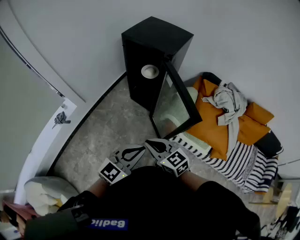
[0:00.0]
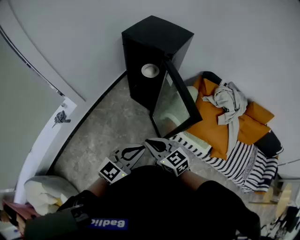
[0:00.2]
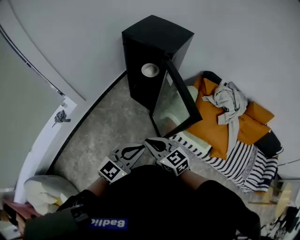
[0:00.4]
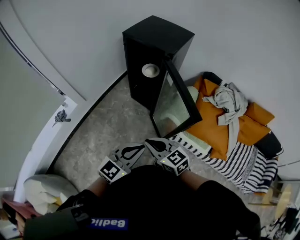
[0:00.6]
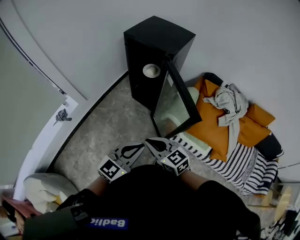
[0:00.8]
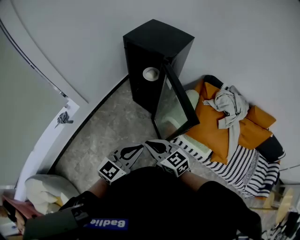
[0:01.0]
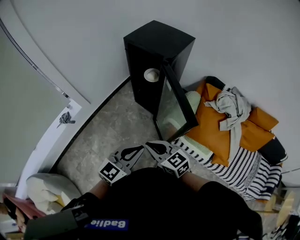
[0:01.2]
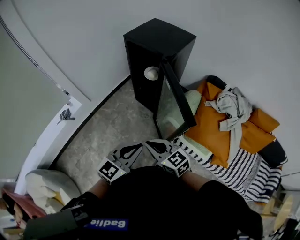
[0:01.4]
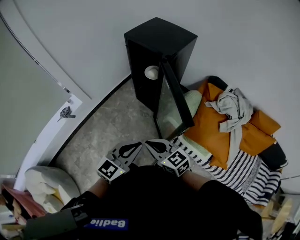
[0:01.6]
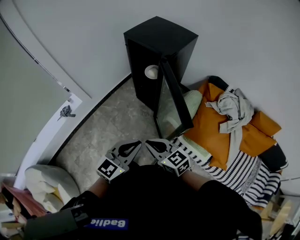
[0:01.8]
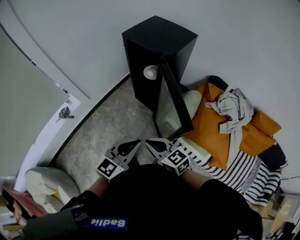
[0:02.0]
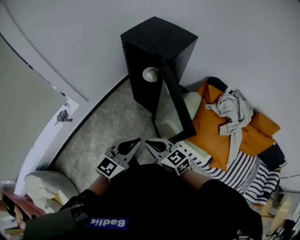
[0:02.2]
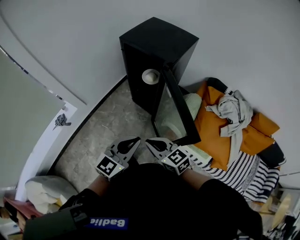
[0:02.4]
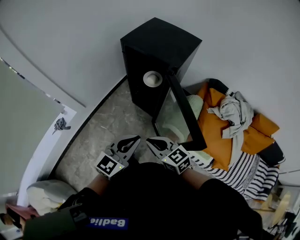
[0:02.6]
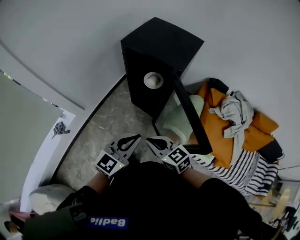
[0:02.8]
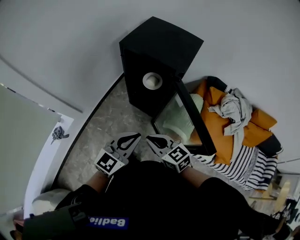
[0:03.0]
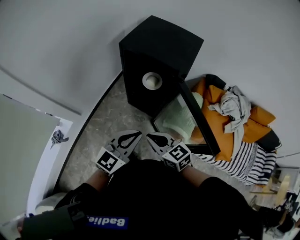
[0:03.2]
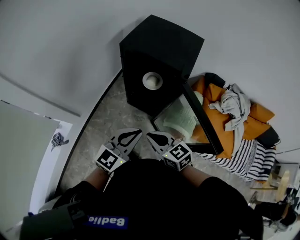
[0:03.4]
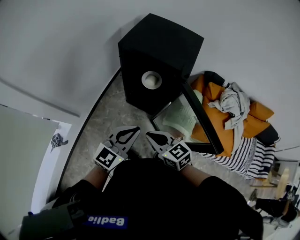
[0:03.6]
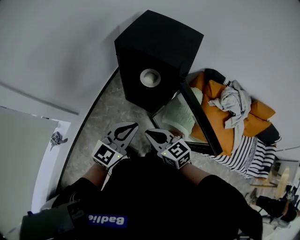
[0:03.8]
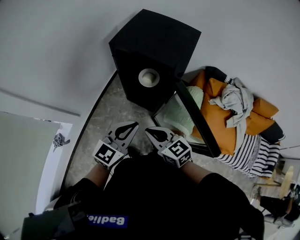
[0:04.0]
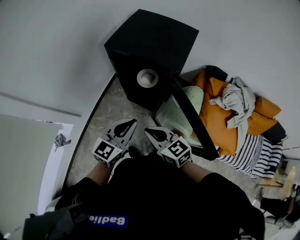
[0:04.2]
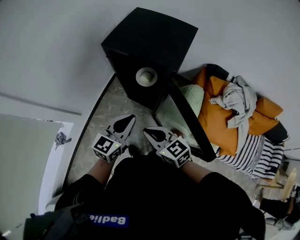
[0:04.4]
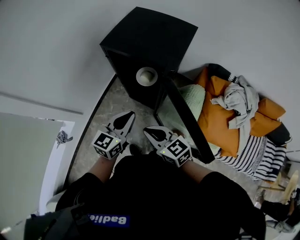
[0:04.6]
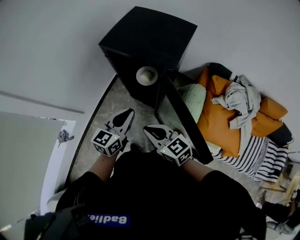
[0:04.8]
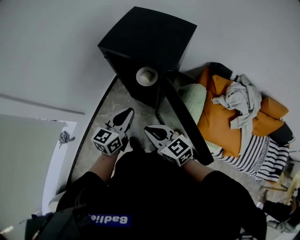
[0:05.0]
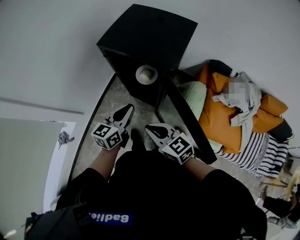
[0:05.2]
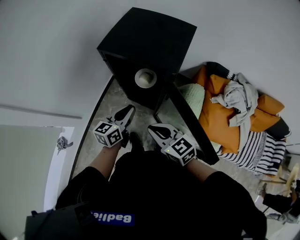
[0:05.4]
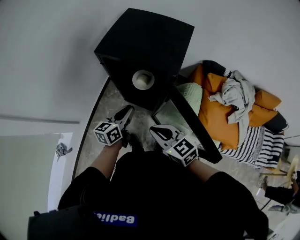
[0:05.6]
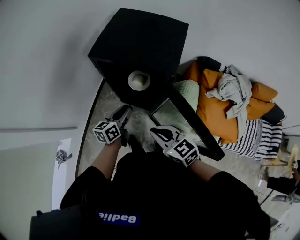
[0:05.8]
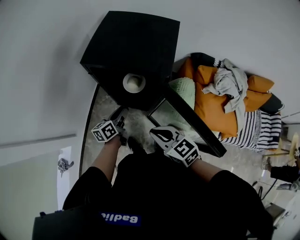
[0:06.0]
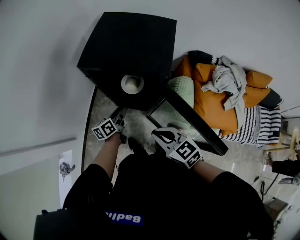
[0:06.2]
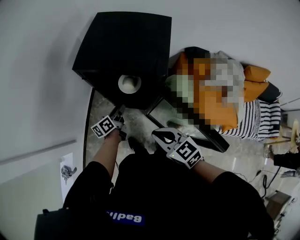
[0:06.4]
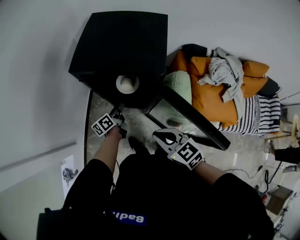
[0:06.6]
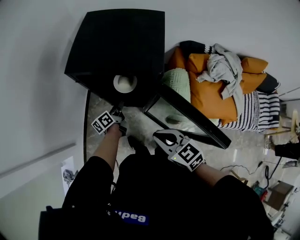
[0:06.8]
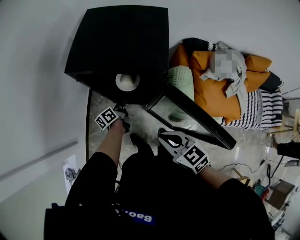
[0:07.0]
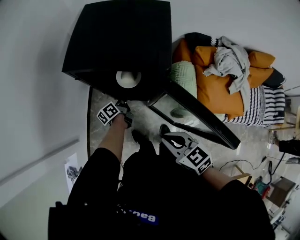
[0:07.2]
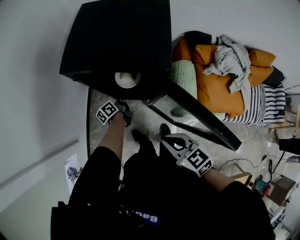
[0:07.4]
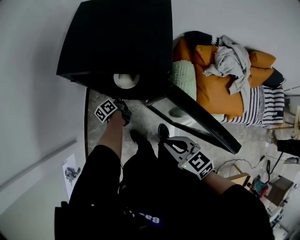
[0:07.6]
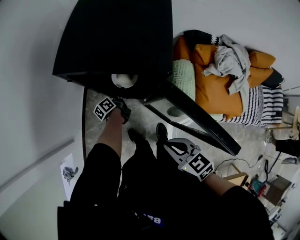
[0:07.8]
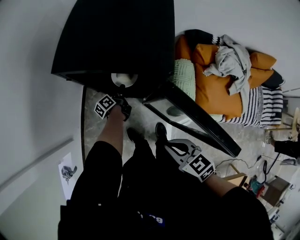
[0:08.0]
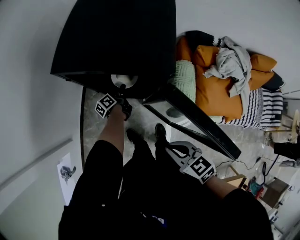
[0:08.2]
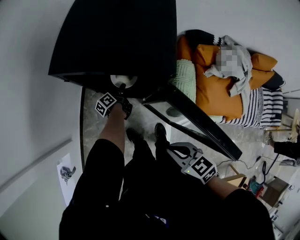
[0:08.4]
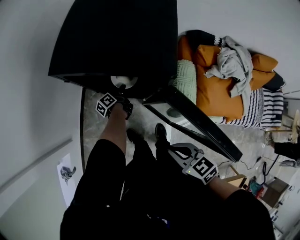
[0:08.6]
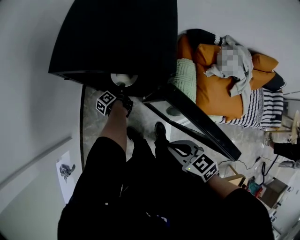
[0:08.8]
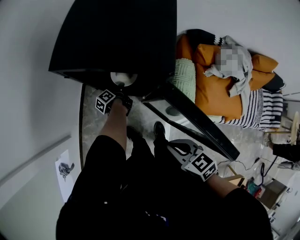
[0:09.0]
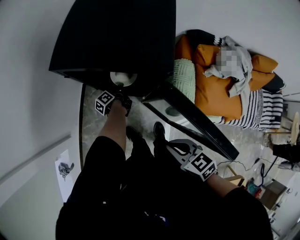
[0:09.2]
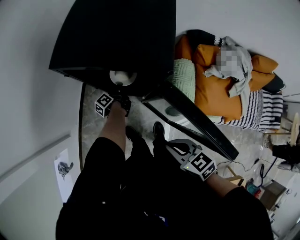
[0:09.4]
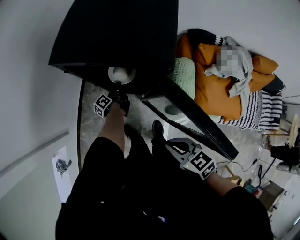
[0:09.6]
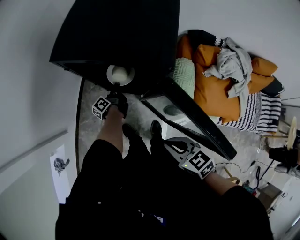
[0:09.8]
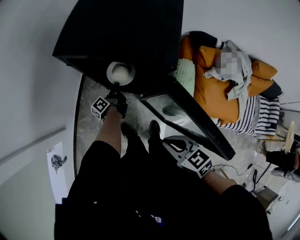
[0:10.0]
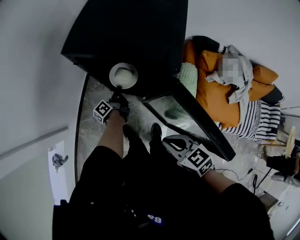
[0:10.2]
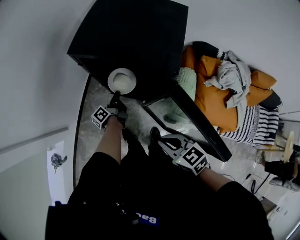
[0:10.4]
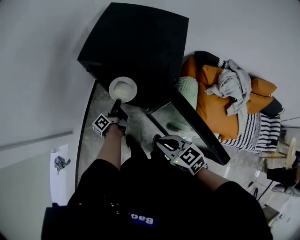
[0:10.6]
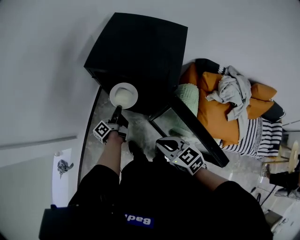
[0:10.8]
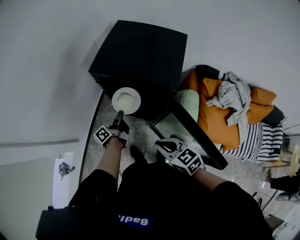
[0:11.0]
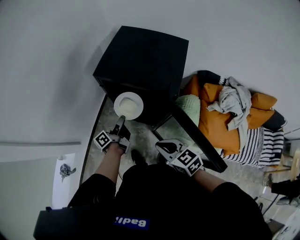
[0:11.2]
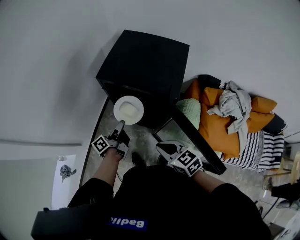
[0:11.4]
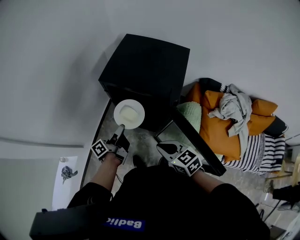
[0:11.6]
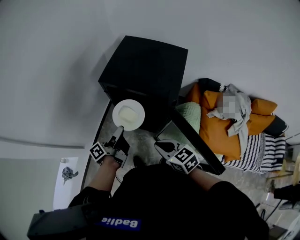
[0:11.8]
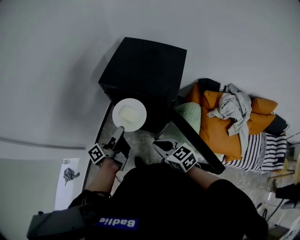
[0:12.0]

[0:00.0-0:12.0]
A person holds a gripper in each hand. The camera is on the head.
0:00.0 to 0:01.6: The right gripper moves to the right, some 5 cm.
0:01.6 to 0:03.0: Both grippers travel together forward and to the left, approximately 20 cm.
0:03.0 to 0:04.4: The right gripper heads forward, covering roughly 5 cm. Meanwhile the left gripper travels forward by some 10 cm.
0:04.4 to 0:06.0: The right gripper shifts some 5 cm forward, while the left gripper is displaced downward and forward by some 20 cm, turns by about 40 degrees, and opens up.
0:06.0 to 0:07.6: The left gripper moves downward and forward, about 20 cm, and changes its angle by some 20 degrees, while the right gripper ends up approximately 5 cm from where it was.
0:07.6 to 0:09.0: The left gripper ends up about 5 cm from where it was, and changes its angle by approximately 20 degrees.
0:09.0 to 0:10.4: The left gripper heads upward and to the left, covering roughly 10 cm, and changes its angle by approximately 20 degrees.
0:10.4 to 0:12.0: The left gripper goes approximately 25 cm upward, while the right gripper shifts some 5 cm forward.

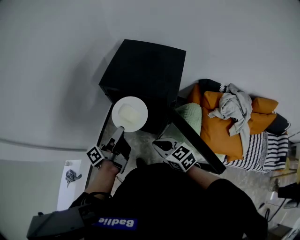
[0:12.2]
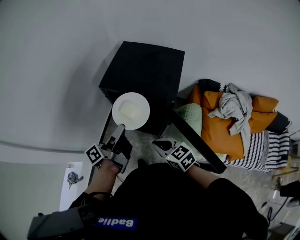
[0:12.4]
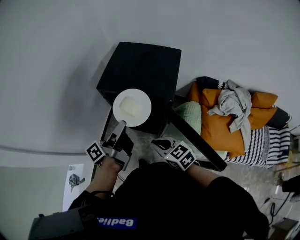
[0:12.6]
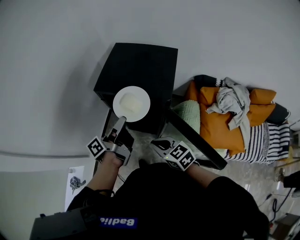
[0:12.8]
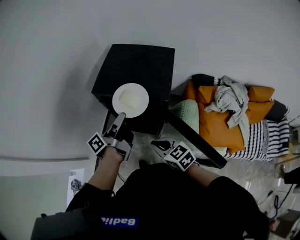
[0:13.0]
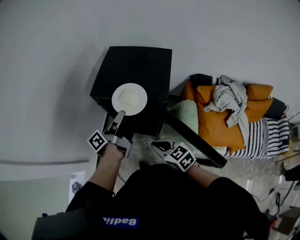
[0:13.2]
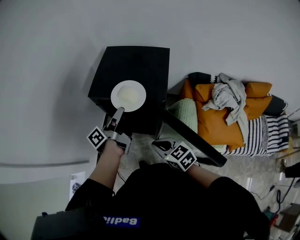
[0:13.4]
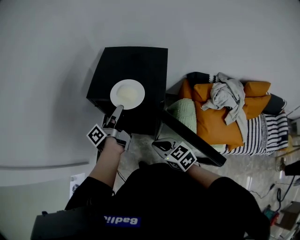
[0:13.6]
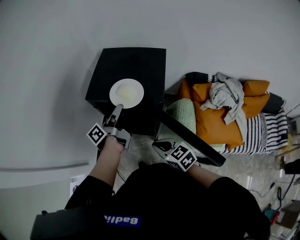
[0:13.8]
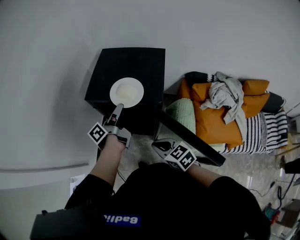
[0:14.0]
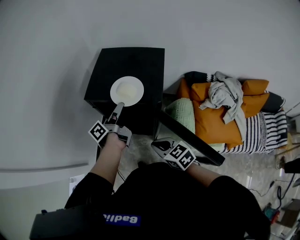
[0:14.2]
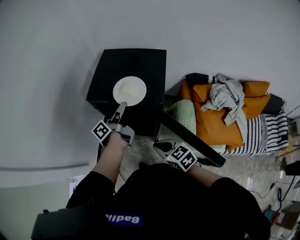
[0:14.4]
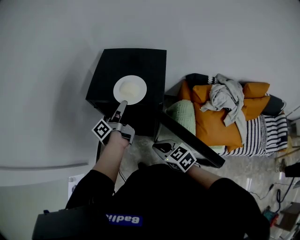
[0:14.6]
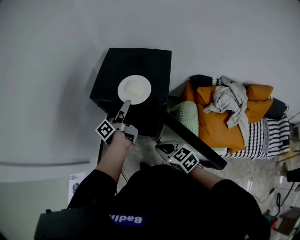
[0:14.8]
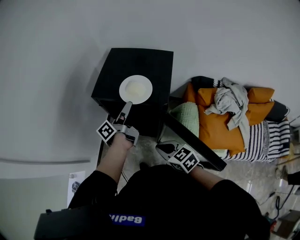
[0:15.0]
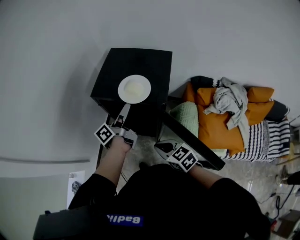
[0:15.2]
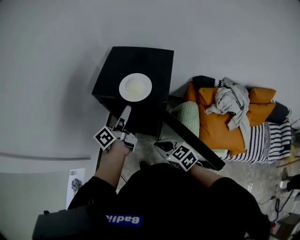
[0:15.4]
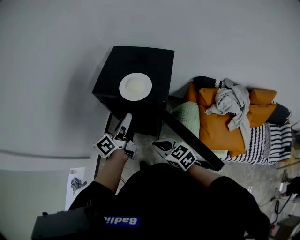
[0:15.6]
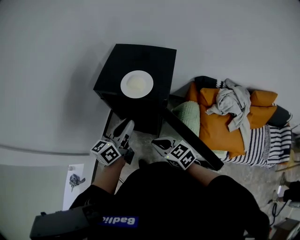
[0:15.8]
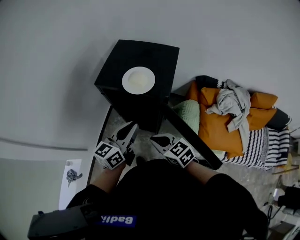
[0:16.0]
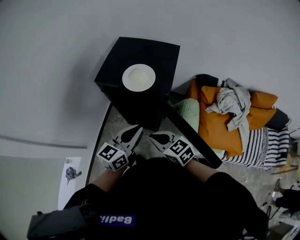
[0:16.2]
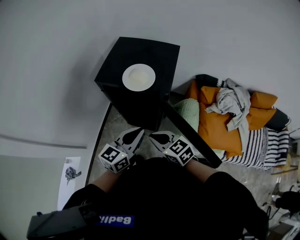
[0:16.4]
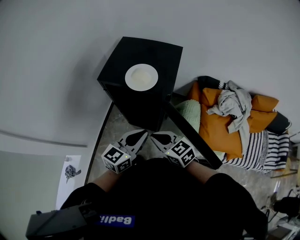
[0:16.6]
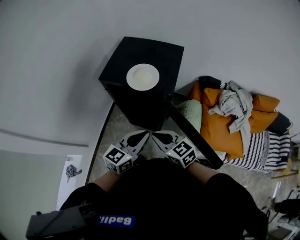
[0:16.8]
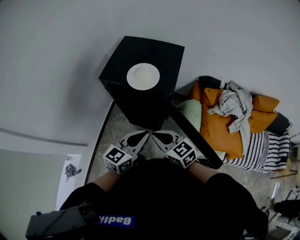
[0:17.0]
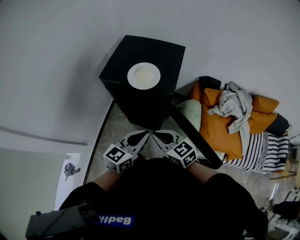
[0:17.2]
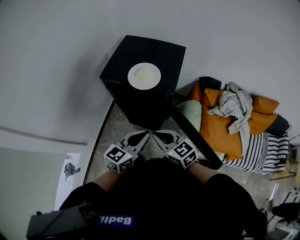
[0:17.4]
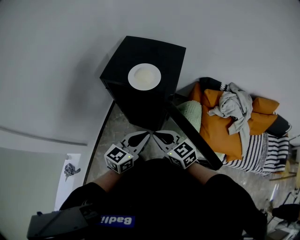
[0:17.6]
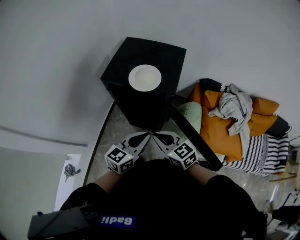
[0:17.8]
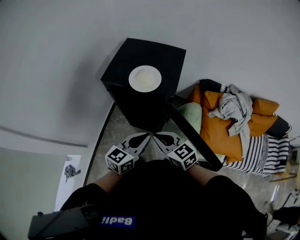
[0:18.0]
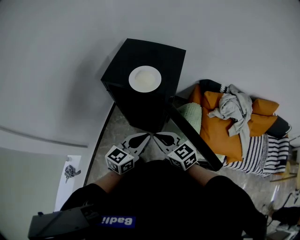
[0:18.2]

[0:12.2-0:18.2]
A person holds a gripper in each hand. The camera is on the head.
0:12.2 to 0:13.8: The left gripper travels forward and to the right by about 15 cm.
0:13.8 to 0:15.2: The grippers move only a little.
0:15.2 to 0:16.6: The left gripper goes some 20 cm backward, and rotates around the line of its fingers by about 60 degrees, clockwise from behind.
0:16.6 to 0:18.2: The grippers make only small movements.

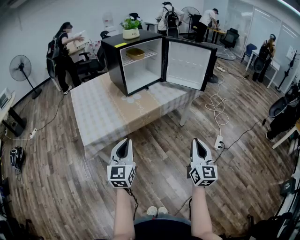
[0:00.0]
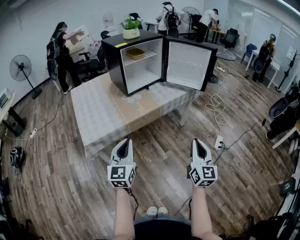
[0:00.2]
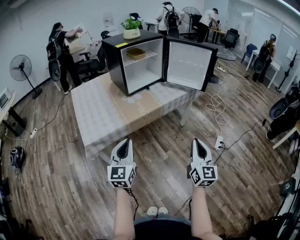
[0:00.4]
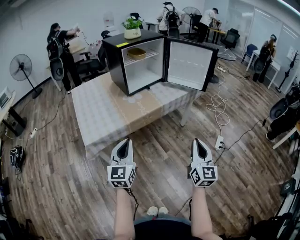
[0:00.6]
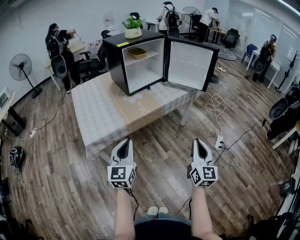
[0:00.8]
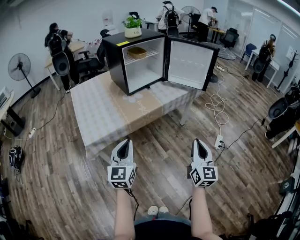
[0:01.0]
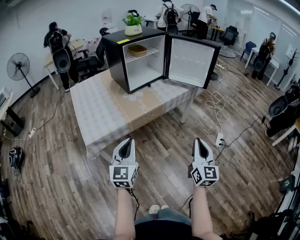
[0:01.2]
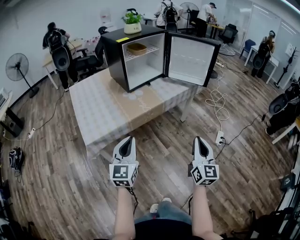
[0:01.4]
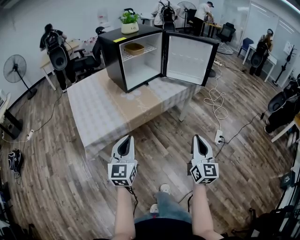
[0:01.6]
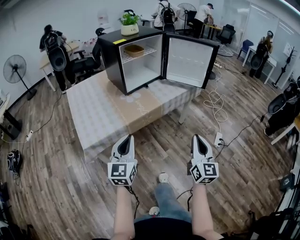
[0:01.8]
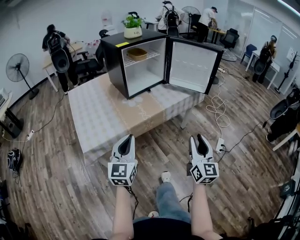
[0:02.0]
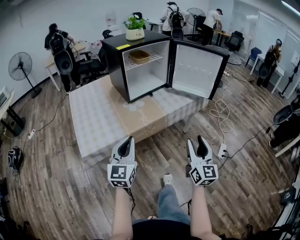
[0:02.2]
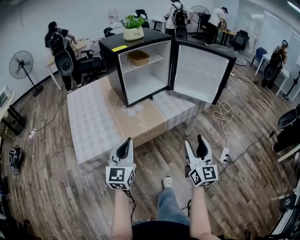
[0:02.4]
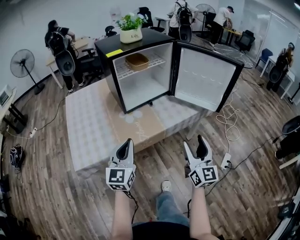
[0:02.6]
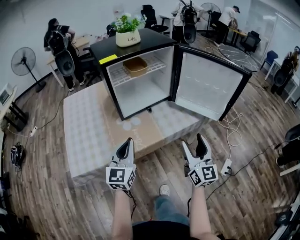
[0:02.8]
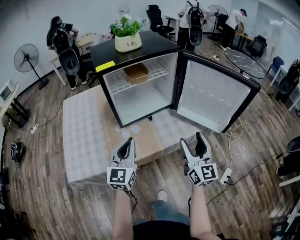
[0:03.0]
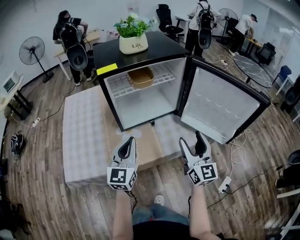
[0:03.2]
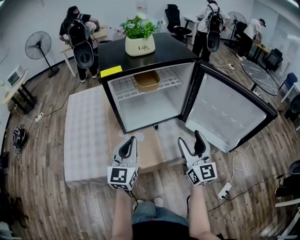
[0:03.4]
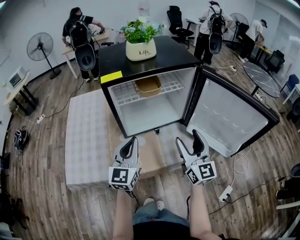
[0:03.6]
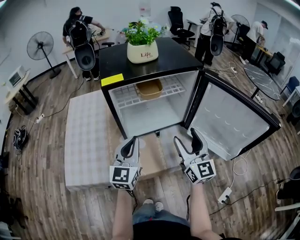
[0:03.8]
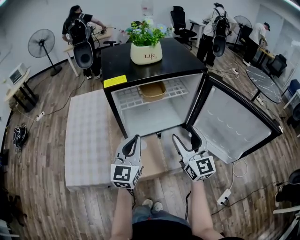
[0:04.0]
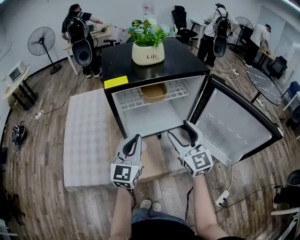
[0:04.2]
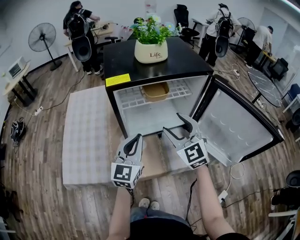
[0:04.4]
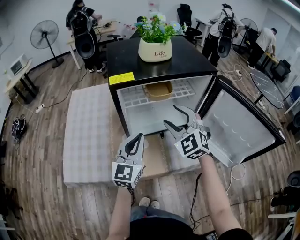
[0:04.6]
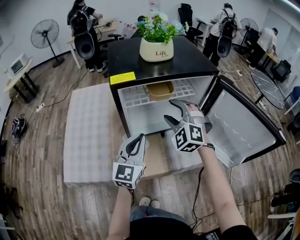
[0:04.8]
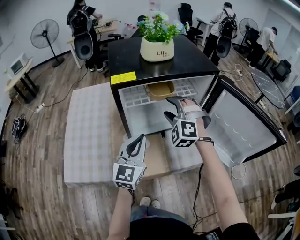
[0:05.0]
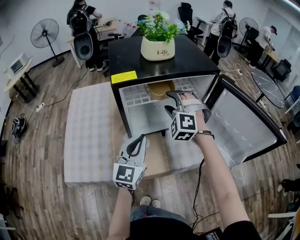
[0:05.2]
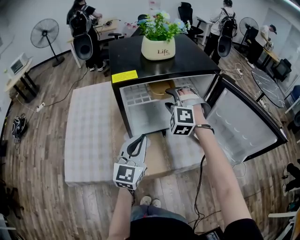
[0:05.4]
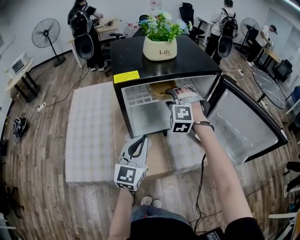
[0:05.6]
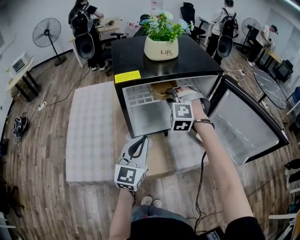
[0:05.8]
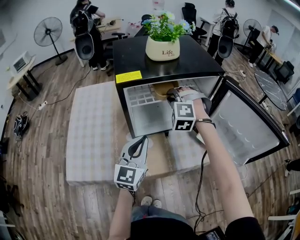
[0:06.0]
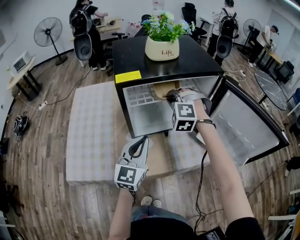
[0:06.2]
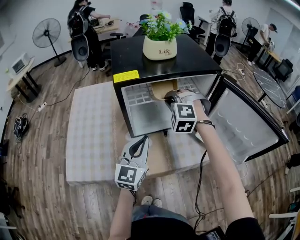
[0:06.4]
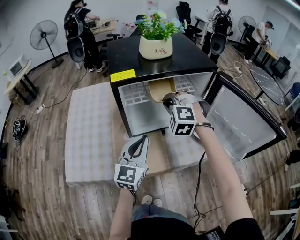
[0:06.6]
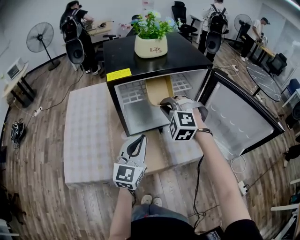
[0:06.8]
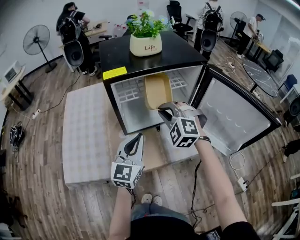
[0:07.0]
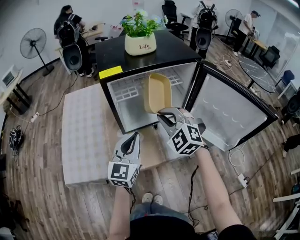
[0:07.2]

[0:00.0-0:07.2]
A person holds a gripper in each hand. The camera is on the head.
0:00.0 to 0:01.4: The grippers stay close to where they were, moving slightly.
0:01.4 to 0:02.8: Both grippers travel together forward, roughly 35 cm. The right gripper opens up.
0:02.8 to 0:04.4: Both grippers travel together forward, roughly 25 cm. The right gripper swivels roughly 50 degrees.
0:04.4 to 0:05.8: The right gripper heads forward, covering some 10 cm, rotates around the line of its fingers by approximately 50 degrees, counterclockwise from behind, and closes its fingers.
0:05.8 to 0:07.2: The right gripper is displaced backward by about 15 cm, and rotates roughly 30 degrees.
